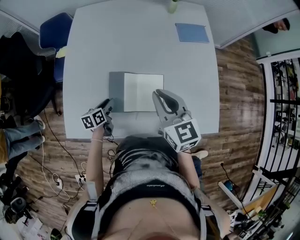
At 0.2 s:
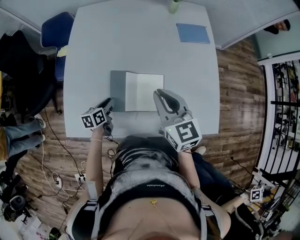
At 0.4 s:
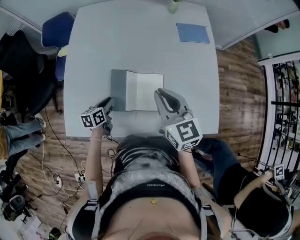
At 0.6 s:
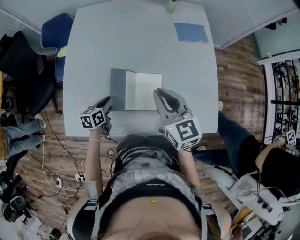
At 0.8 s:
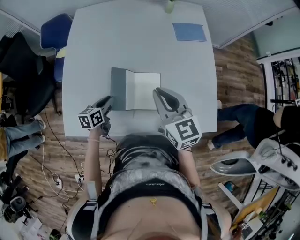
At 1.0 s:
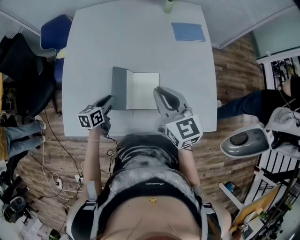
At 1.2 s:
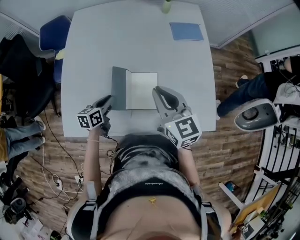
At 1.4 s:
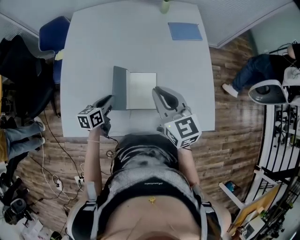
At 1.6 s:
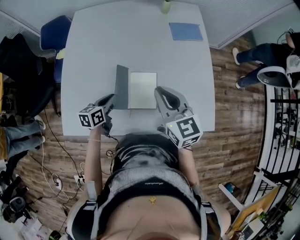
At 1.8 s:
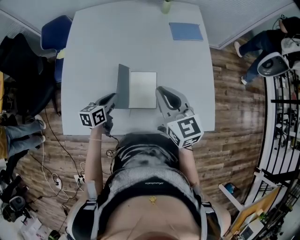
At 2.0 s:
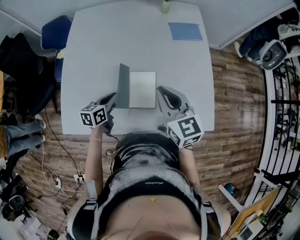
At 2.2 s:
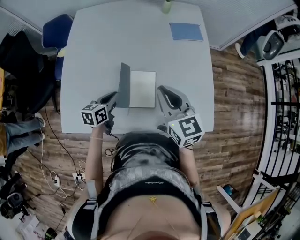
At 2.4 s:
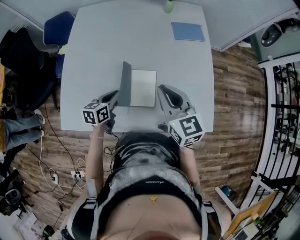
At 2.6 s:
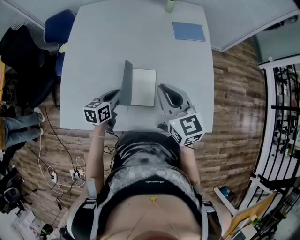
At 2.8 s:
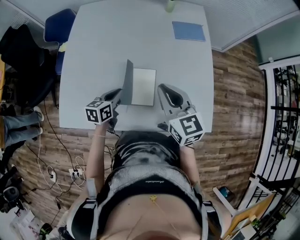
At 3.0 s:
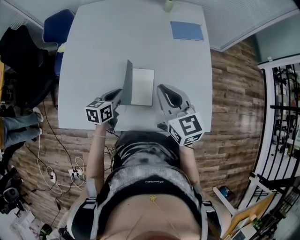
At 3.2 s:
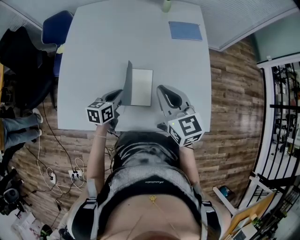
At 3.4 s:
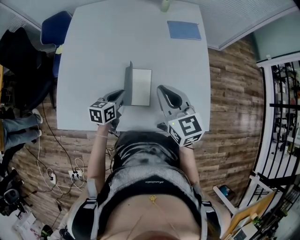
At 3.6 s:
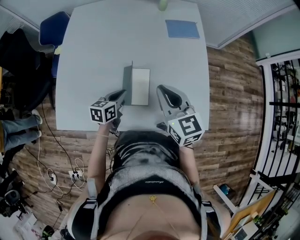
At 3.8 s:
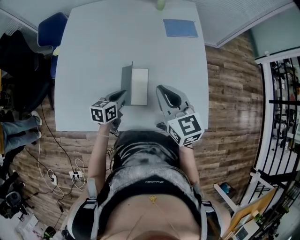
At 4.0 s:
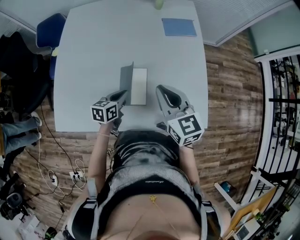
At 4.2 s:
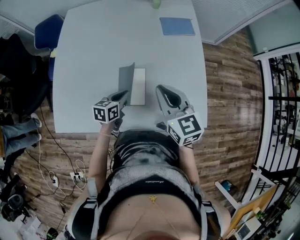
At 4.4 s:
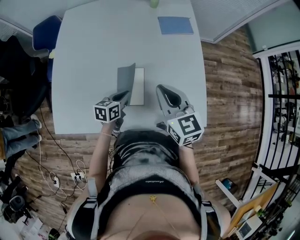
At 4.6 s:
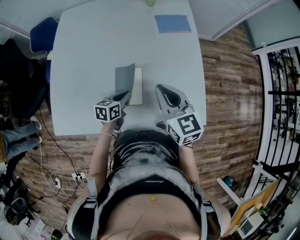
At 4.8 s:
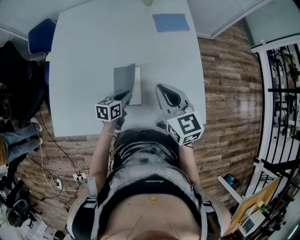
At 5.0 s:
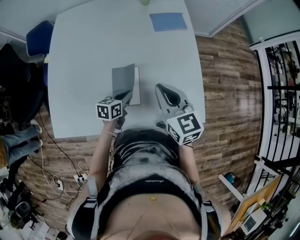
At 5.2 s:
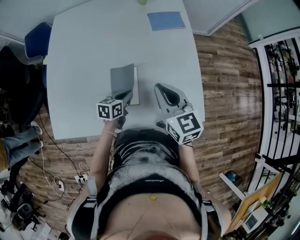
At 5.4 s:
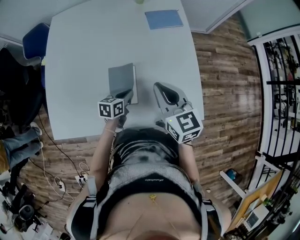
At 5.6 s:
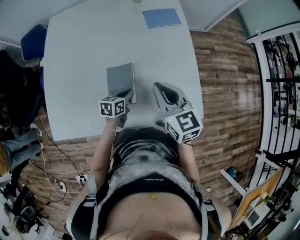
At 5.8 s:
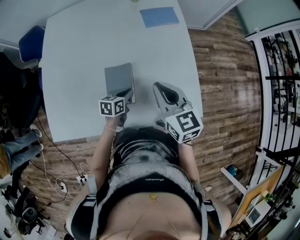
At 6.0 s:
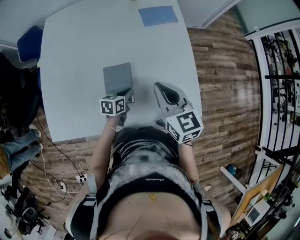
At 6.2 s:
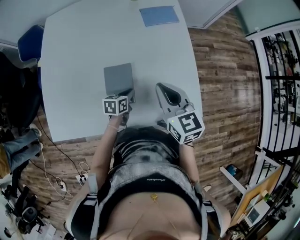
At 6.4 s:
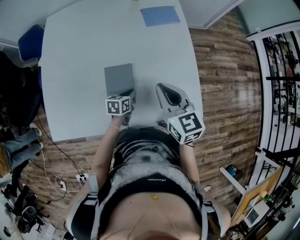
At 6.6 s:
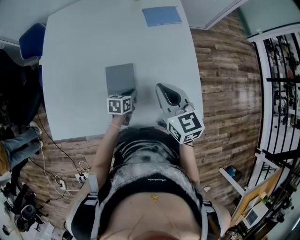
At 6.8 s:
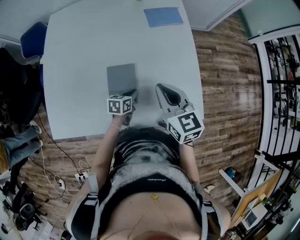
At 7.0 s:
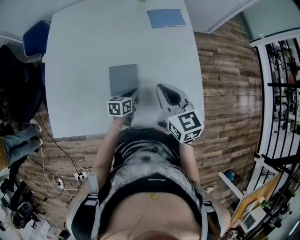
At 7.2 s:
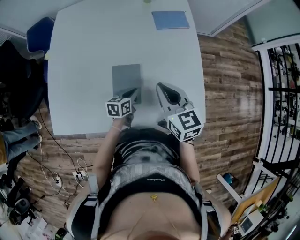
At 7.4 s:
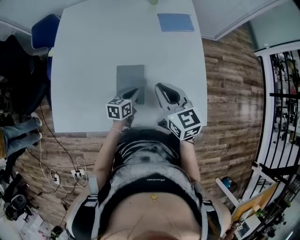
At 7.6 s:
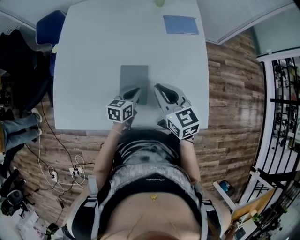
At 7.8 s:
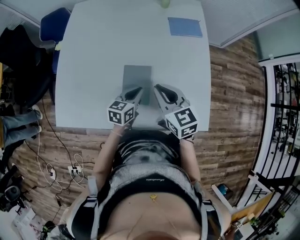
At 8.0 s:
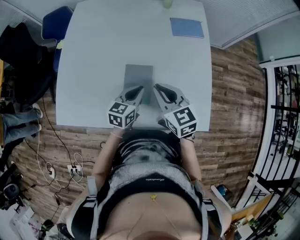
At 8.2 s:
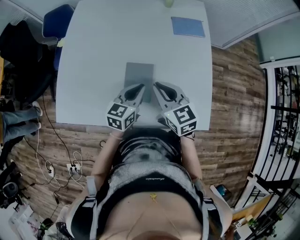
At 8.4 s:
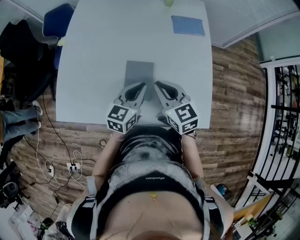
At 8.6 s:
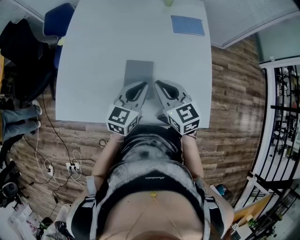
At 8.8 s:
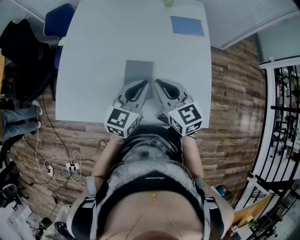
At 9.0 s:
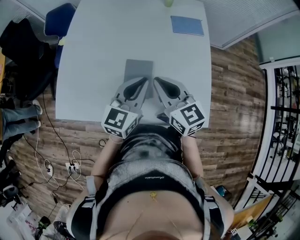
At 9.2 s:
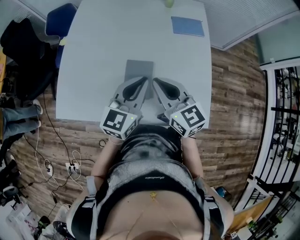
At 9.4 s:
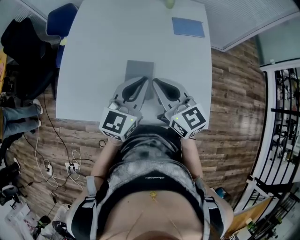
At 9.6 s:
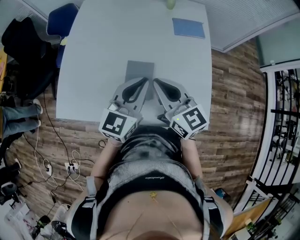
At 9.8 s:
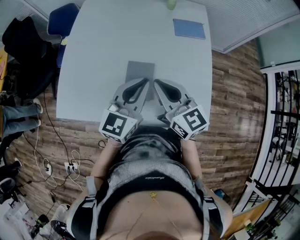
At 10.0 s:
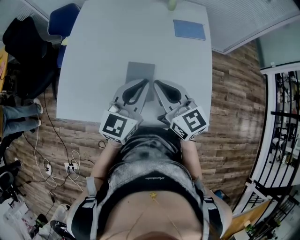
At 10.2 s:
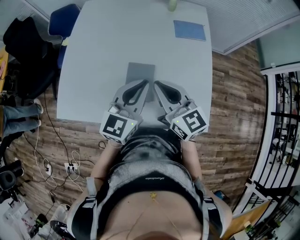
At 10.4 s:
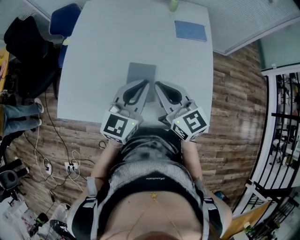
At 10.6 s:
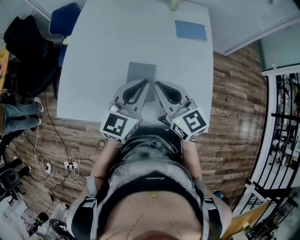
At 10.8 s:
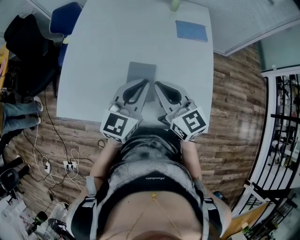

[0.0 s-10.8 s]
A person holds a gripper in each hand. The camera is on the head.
0.0 to 1.6 s: The left gripper travels upward and to the right by roughly 10 cm.
1.6 to 3.0 s: The left gripper shifts some 5 cm to the right.
3.0 to 4.6 s: The left gripper is displaced to the right by some 10 cm, while the right gripper shifts by about 5 cm.
4.6 to 6.2 s: The right gripper moves about 5 cm; the left gripper shifts approximately 10 cm to the right and downward.
6.2 to 7.8 s: The right gripper is displaced to the left by about 10 cm. The left gripper shifts some 10 cm upward, and changes its angle by roughly 20 degrees.
7.8 to 9.2 s: The left gripper travels upward by roughly 20 cm, and changes its angle by roughly 30 degrees. The right gripper goes approximately 5 cm upward.
9.2 to 10.8 s: The grippers make only small movements.

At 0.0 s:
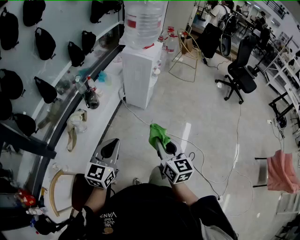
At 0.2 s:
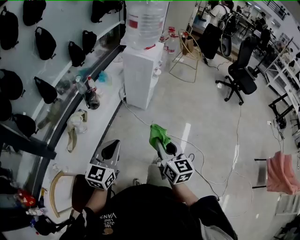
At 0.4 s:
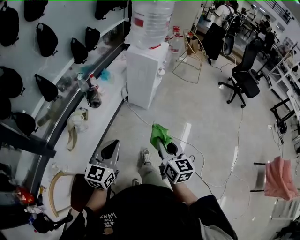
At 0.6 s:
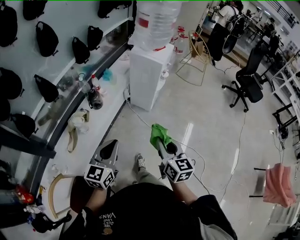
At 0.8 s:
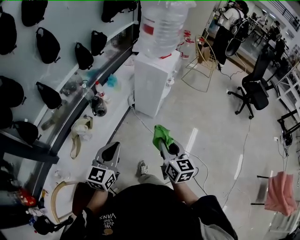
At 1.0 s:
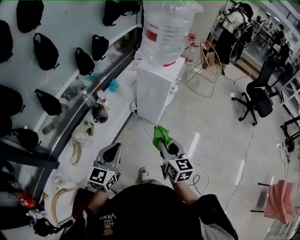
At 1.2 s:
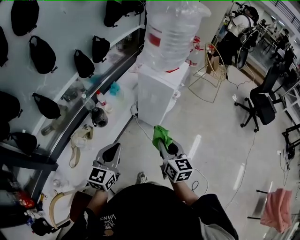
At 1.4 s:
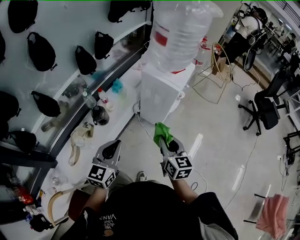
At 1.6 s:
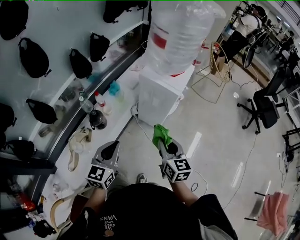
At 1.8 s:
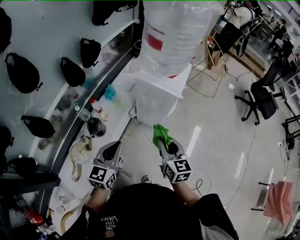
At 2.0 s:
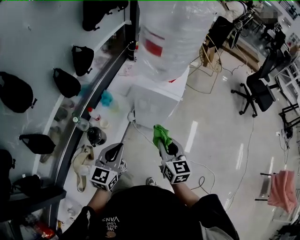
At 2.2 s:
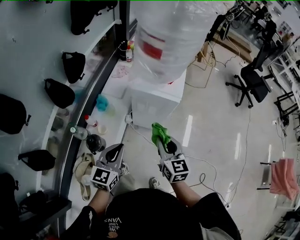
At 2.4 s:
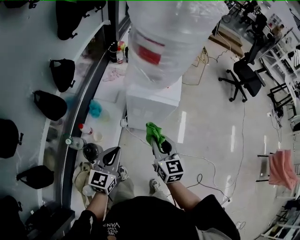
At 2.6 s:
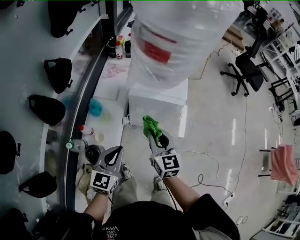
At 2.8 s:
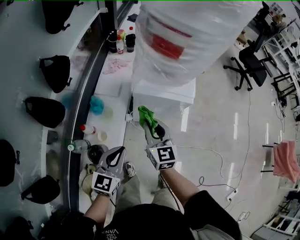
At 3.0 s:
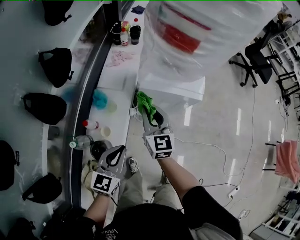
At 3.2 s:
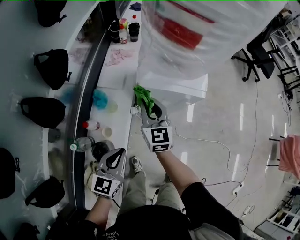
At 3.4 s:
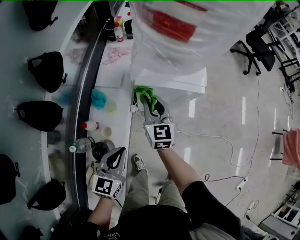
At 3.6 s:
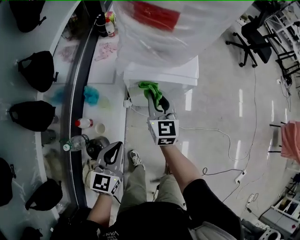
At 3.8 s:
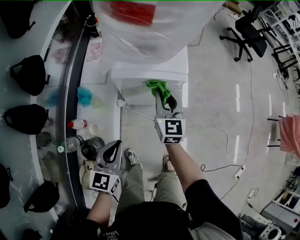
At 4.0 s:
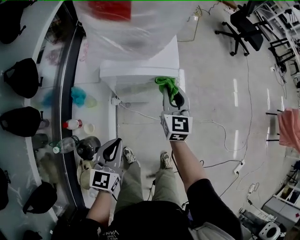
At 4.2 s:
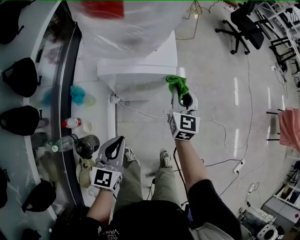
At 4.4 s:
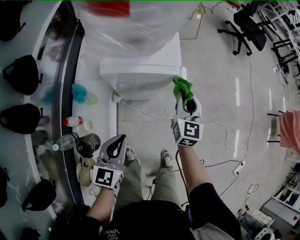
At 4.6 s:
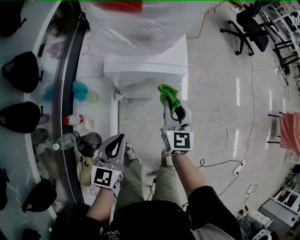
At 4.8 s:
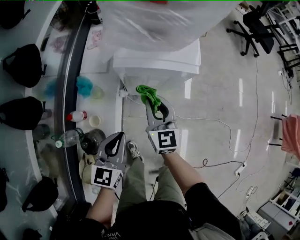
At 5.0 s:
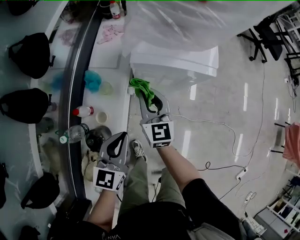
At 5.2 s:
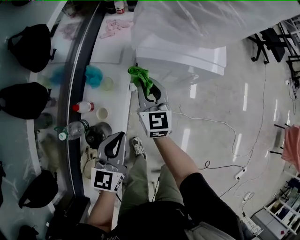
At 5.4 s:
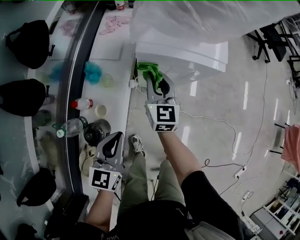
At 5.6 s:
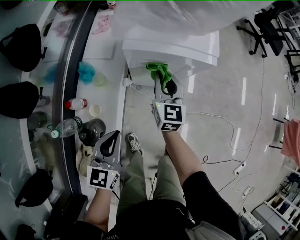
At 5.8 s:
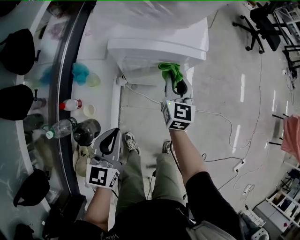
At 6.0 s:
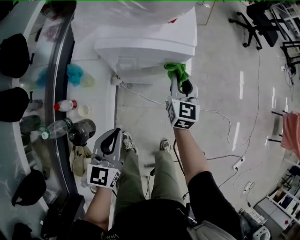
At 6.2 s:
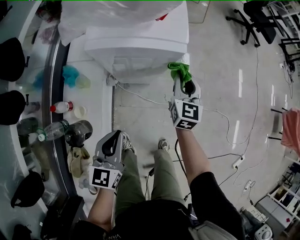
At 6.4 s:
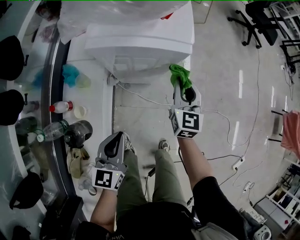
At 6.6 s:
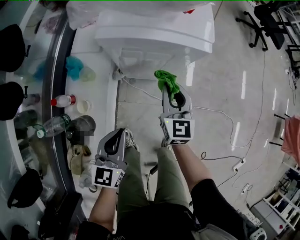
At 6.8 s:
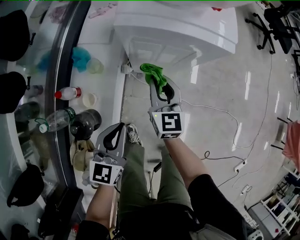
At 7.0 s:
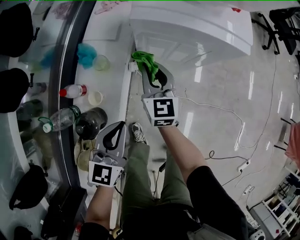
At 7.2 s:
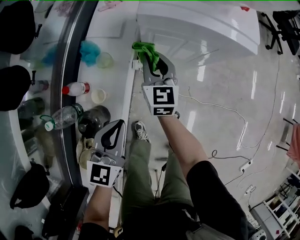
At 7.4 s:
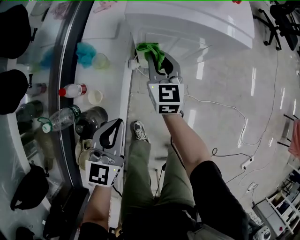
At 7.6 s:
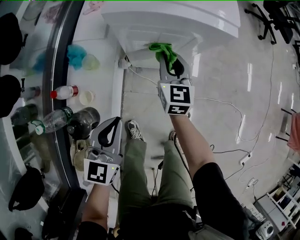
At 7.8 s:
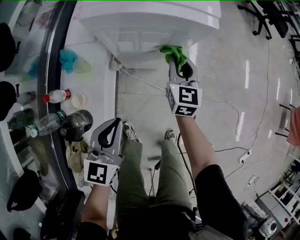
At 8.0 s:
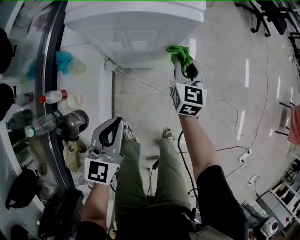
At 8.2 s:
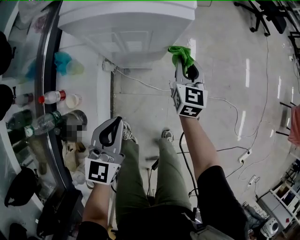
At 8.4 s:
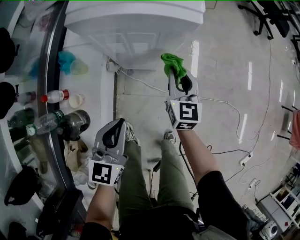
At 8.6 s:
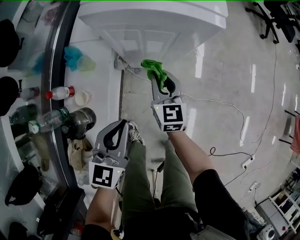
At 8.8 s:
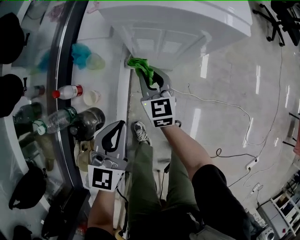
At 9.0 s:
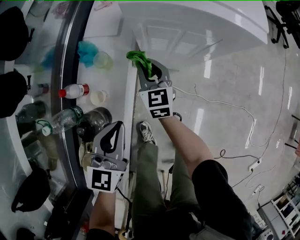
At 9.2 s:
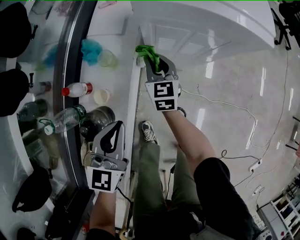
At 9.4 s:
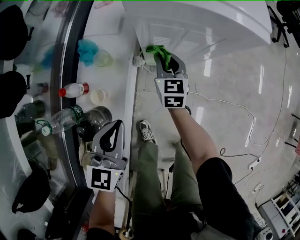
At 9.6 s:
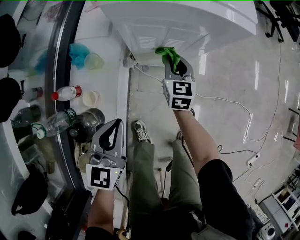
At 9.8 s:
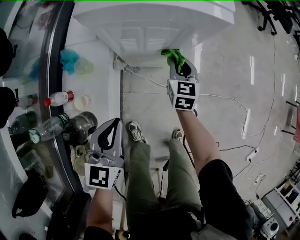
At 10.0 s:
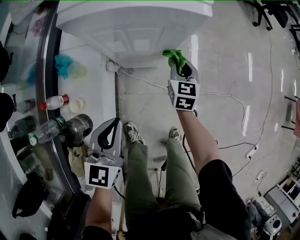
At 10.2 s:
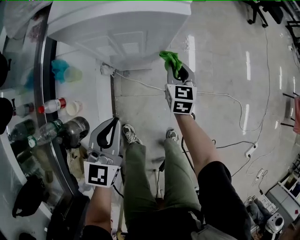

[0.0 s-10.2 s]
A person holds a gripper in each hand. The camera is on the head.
0.0 to 1.4 s: The grippers both shift forward by about 30 cm.
1.4 to 3.0 s: The right gripper shifts by some 35 cm, and changes its angle by some 30 degrees. Meanwhile the left gripper moves approximately 30 cm, and rotates approximately 30 degrees.
3.0 to 4.4 s: The right gripper moves to the right, some 25 cm, and swivels some 30 degrees; the left gripper is displaced to the right by about 10 cm.
4.4 to 5.8 s: The right gripper goes some 10 cm downward, and moves approximately 25 cm to the left and comes back.
5.8 to 7.2 s: The right gripper shifts roughly 20 cm to the left and downward. The left gripper shifts approximately 5 cm downward.
7.2 to 8.8 s: The left gripper goes to the right and returns, approximately 15 cm each way. The right gripper goes some 5 cm downward, and travels to the right and back again, some 30 cm each way.
8.8 to 10.2 s: The left gripper is displaced to the right by some 5 cm, while the right gripper is displaced to the right by roughly 25 cm, and rotates roughly 20 degrees.

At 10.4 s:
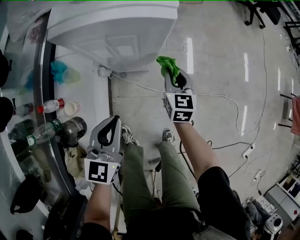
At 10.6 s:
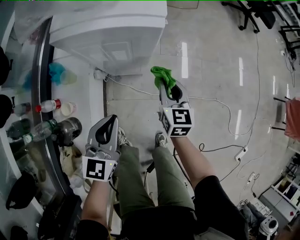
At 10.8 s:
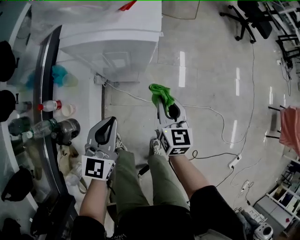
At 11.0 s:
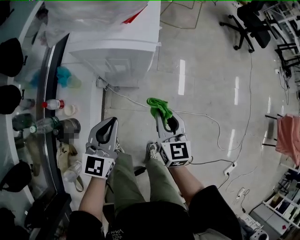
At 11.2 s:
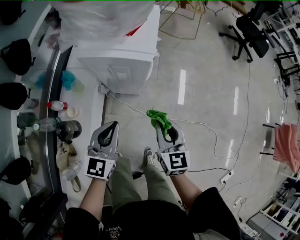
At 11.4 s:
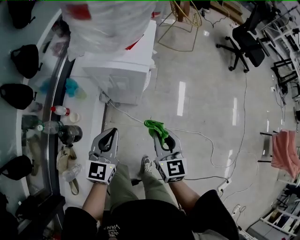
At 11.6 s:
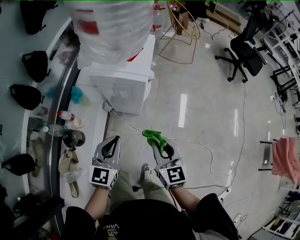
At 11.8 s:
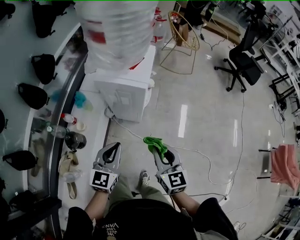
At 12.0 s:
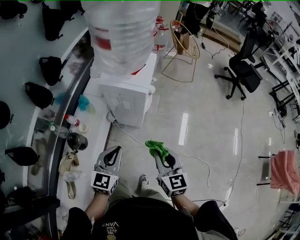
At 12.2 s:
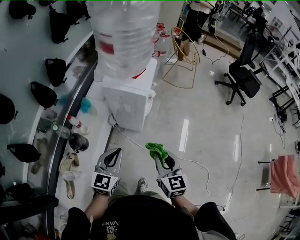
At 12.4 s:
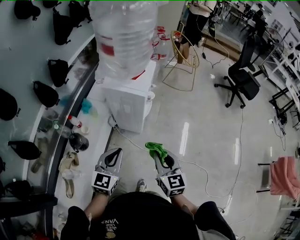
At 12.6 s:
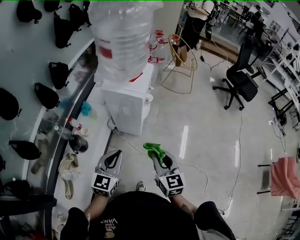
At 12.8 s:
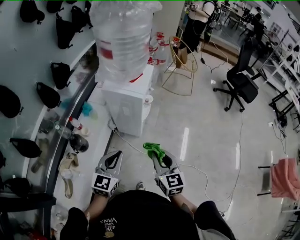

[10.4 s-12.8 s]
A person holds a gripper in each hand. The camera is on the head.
10.4 to 11.6 s: The right gripper shifts about 30 cm upward and backward, and turns by roughly 20 degrees. The left gripper travels upward and to the right by some 15 cm.
11.6 to 12.8 s: The left gripper moves backward and upward, roughly 10 cm. Meanwhile the right gripper goes some 10 cm upward and backward.
